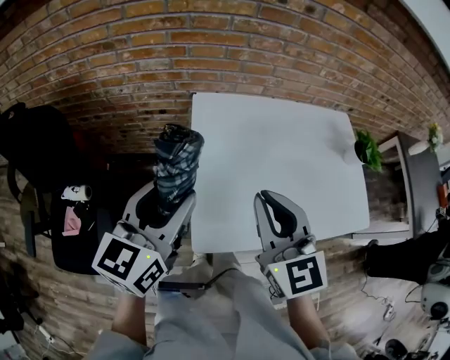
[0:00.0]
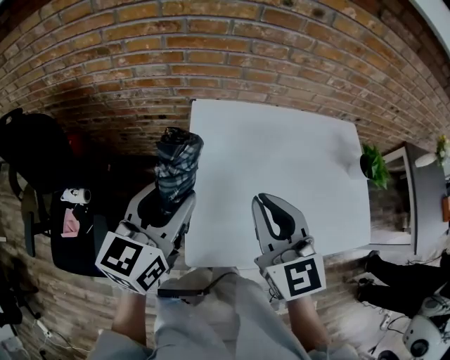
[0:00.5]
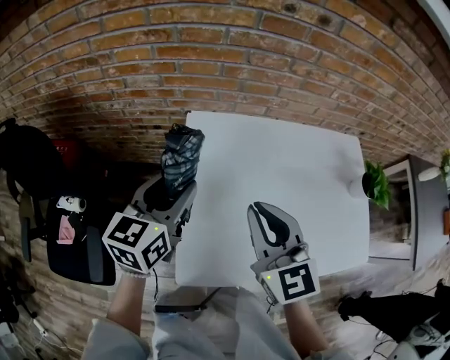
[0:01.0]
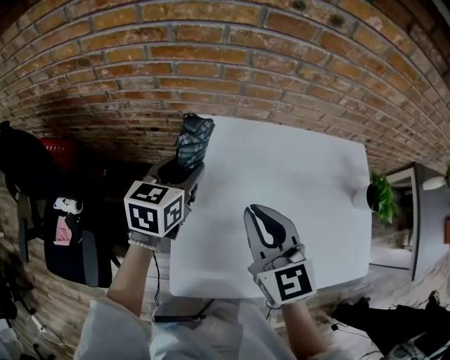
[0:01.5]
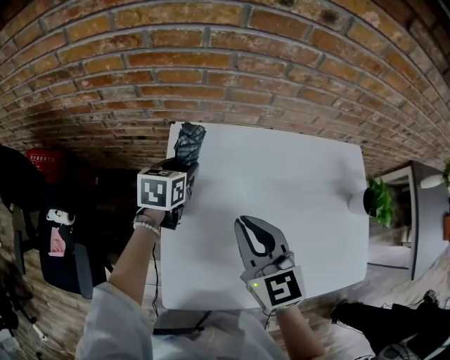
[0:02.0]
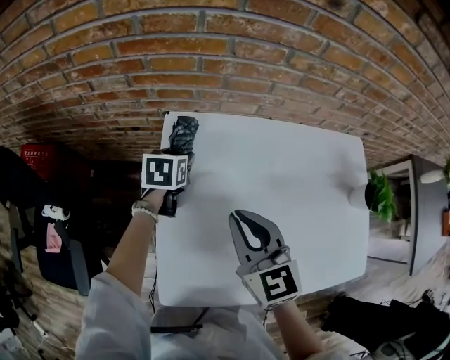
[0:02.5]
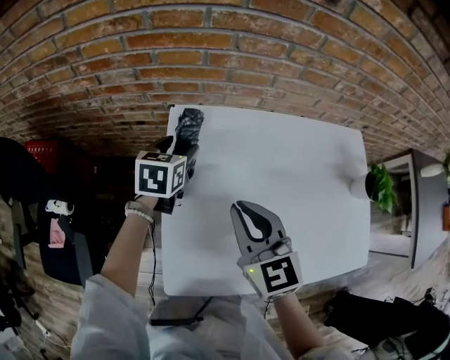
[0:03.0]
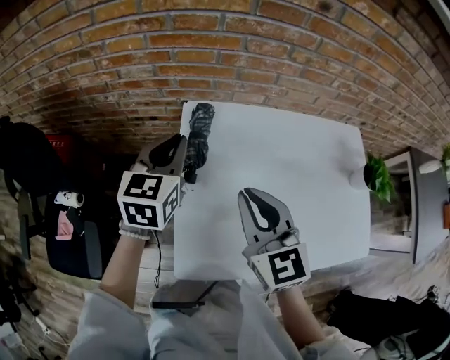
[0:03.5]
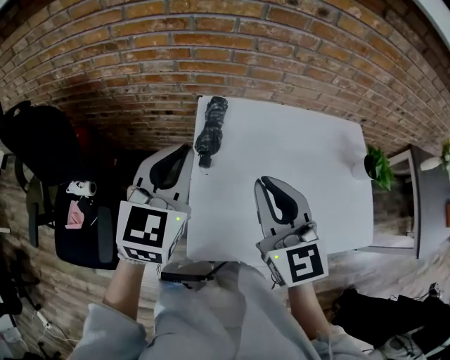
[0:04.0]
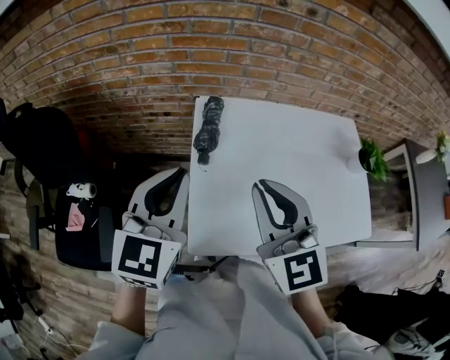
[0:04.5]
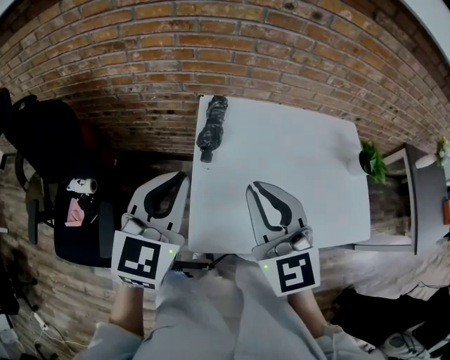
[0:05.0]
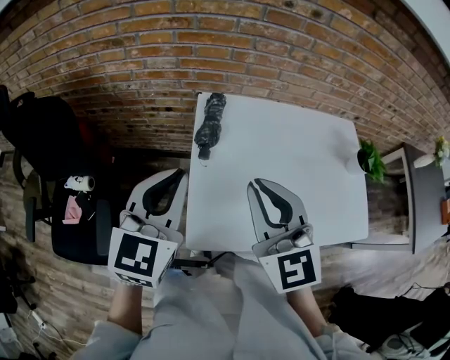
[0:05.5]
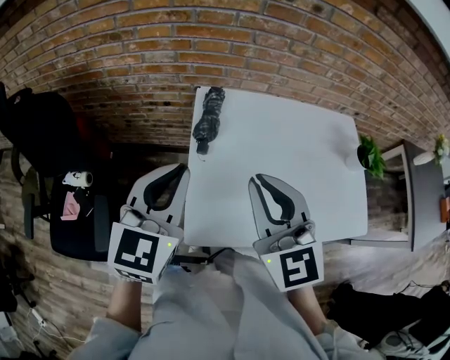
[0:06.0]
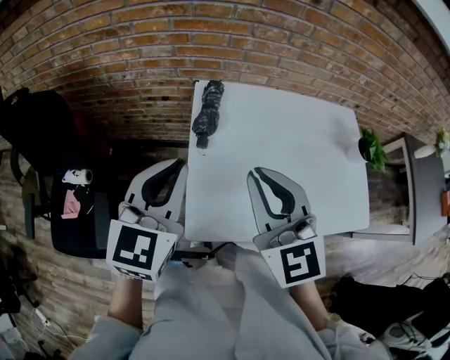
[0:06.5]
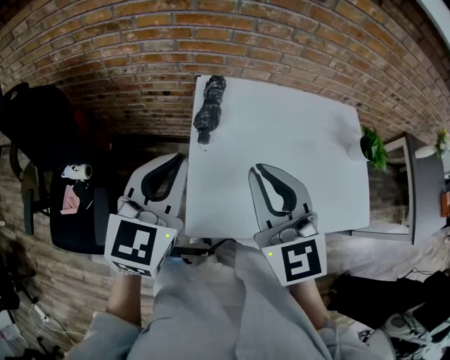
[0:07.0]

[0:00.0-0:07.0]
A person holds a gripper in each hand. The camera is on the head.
0:00.0 to 0:02.0: The left gripper moves forward and downward, some 40 cm, and tips its fingers downward by about 30 degrees, while the right gripper heads forward and downward, covering roughly 20 cm.
0:02.0 to 0:03.5: The right gripper shifts by approximately 5 cm, while the left gripper travels upward and backward by some 15 cm, rotates roughly 20 degrees, and closes its fingers.
0:03.5 to 0:05.0: The left gripper goes some 25 cm backward and upward, while the right gripper shifts approximately 15 cm backward and upward.
0:05.0 to 0:07.0: Both grippers stay put.

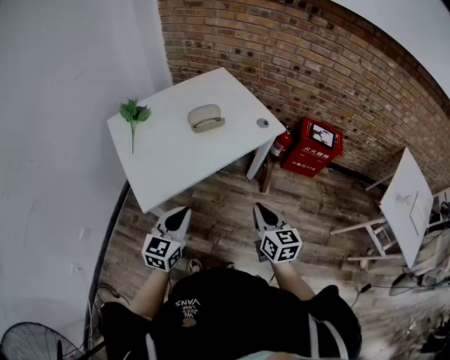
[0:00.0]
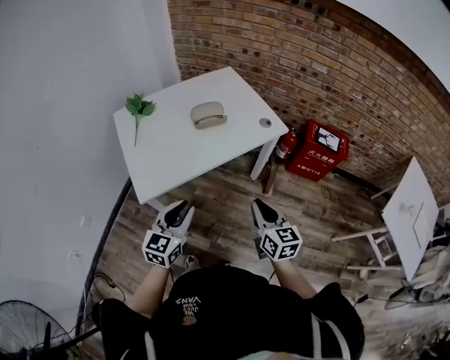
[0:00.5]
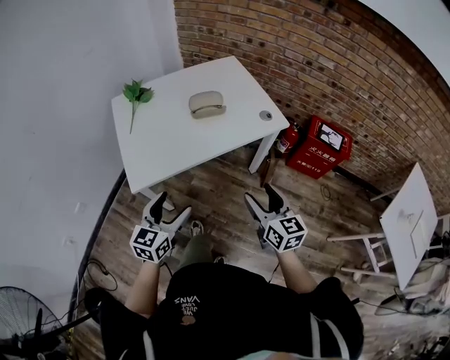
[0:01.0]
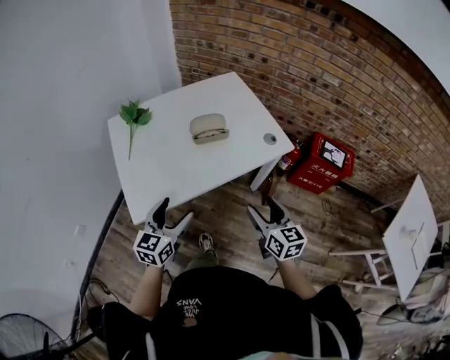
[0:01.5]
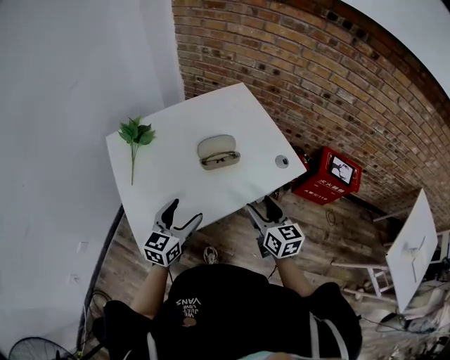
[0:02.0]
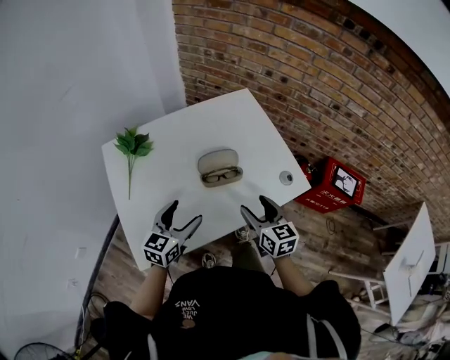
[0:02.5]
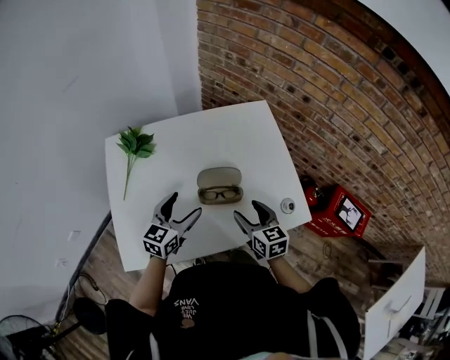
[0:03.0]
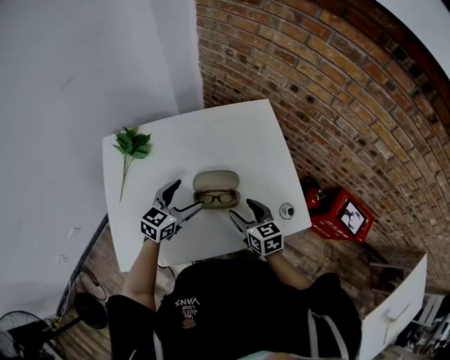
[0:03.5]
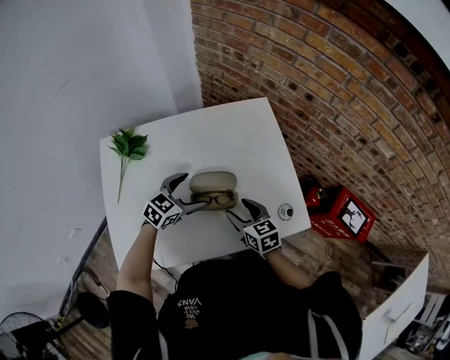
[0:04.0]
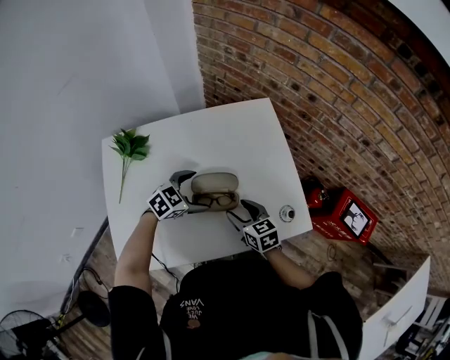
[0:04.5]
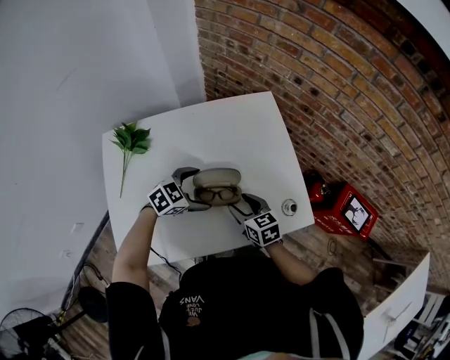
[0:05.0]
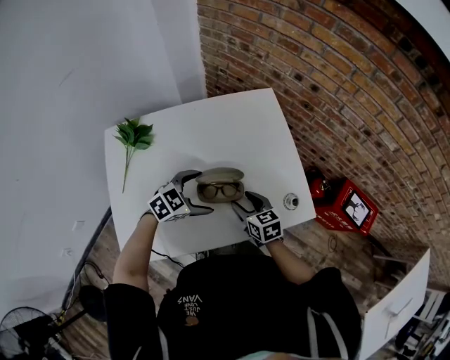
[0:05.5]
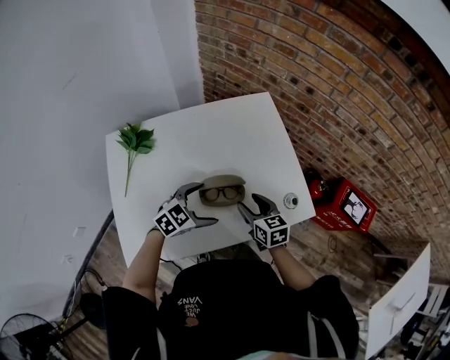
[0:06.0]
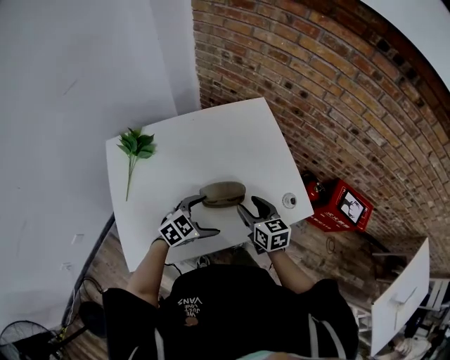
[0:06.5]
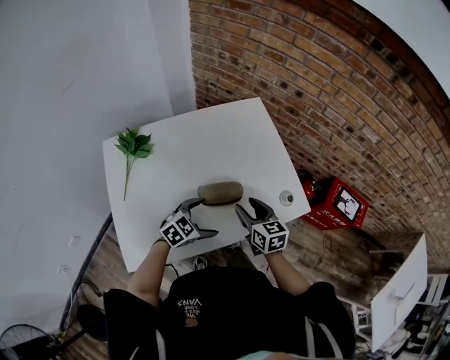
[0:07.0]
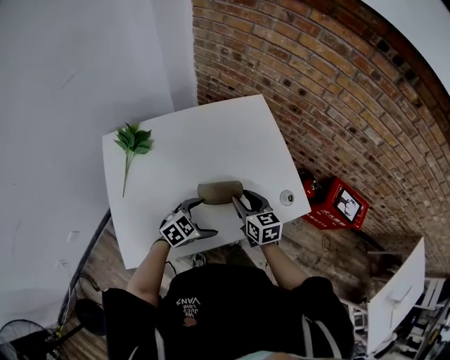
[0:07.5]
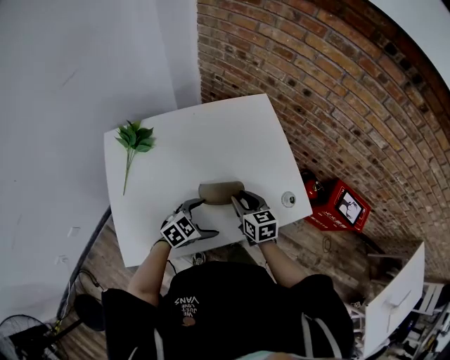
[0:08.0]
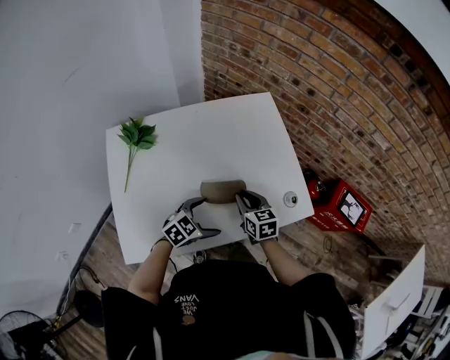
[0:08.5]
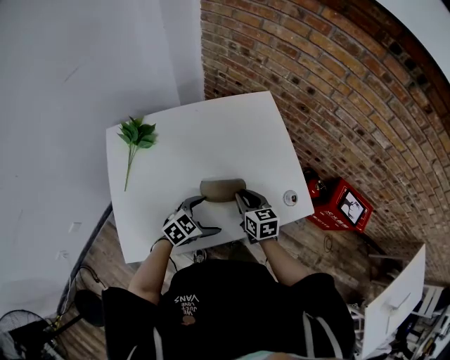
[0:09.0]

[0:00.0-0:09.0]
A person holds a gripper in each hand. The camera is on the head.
0:00.0 to 0:02.0: The grippers both shift forward by roughly 20 cm. The left gripper opens its fingers. Meanwhile the right gripper opens.
0:02.0 to 0:04.5: Both grippers move forward and downward, approximately 25 cm. The left gripper changes its angle by roughly 40 degrees. The right gripper swivels about 30 degrees.
0:04.5 to 0:07.0: The right gripper ends up approximately 5 cm from where it was. Meanwhile the left gripper shifts roughly 15 cm backward.
0:07.0 to 0:09.0: The right gripper ends up roughly 5 cm from where it was, and closes up.

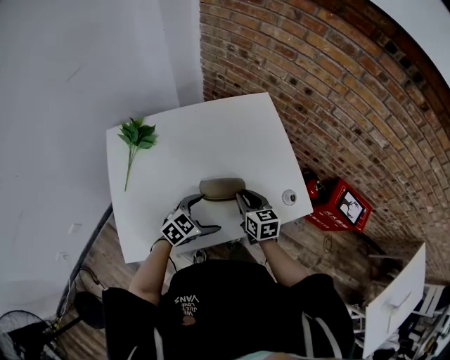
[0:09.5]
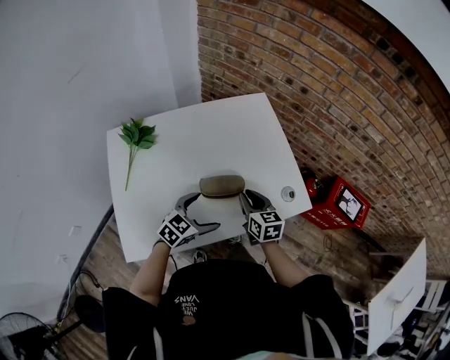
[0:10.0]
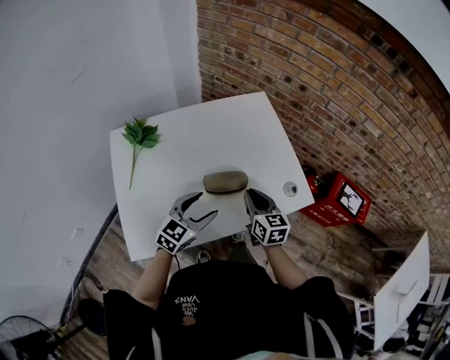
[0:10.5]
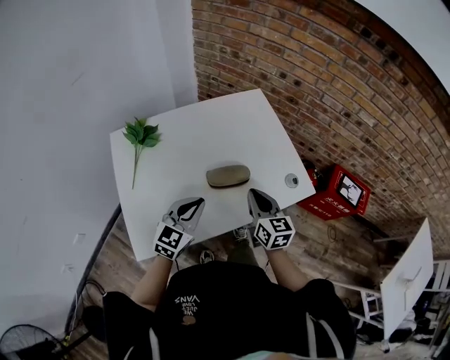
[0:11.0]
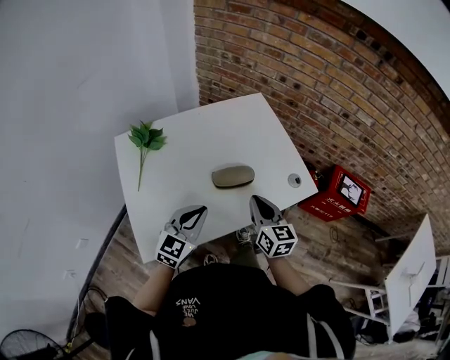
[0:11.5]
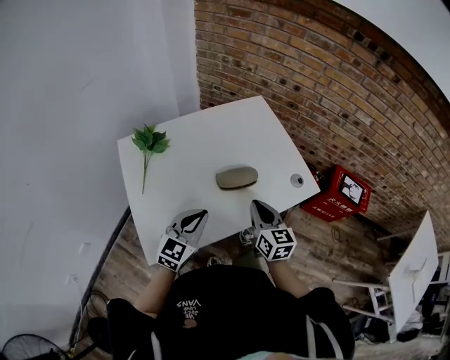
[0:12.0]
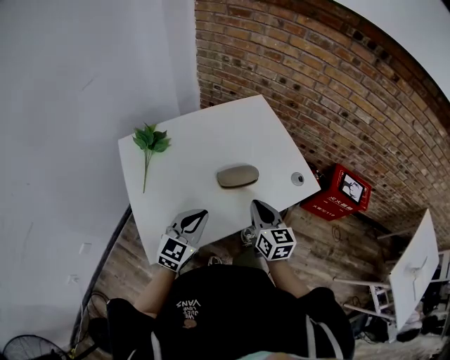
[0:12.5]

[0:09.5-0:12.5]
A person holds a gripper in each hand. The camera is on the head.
0:09.5 to 0:11.0: The left gripper shifts approximately 15 cm upward and to the left, turns by some 30 degrees, and closes its fingers. The right gripper goes about 10 cm upward and backward.
0:11.0 to 0:12.5: Both grippers travel together backward, approximately 5 cm.

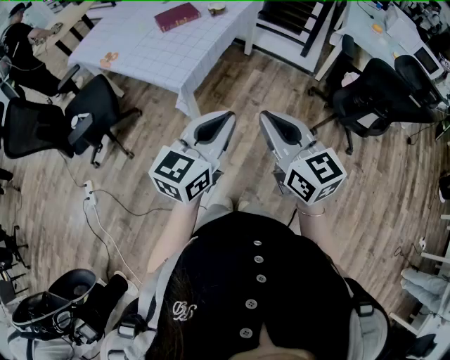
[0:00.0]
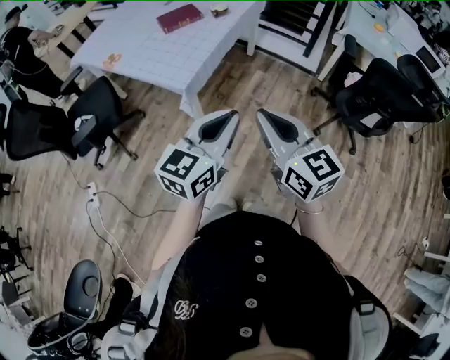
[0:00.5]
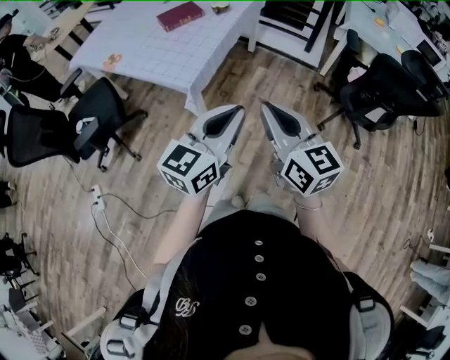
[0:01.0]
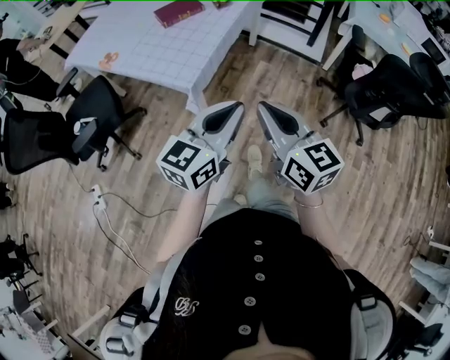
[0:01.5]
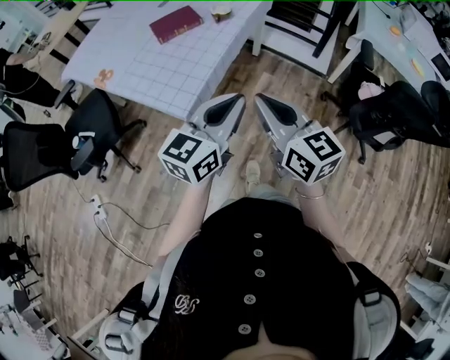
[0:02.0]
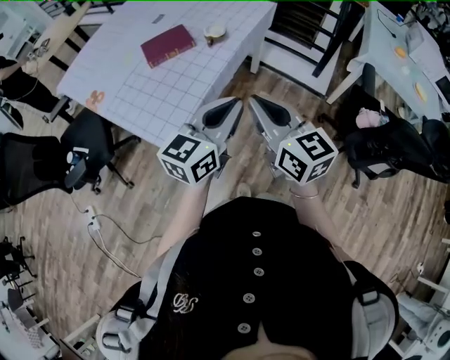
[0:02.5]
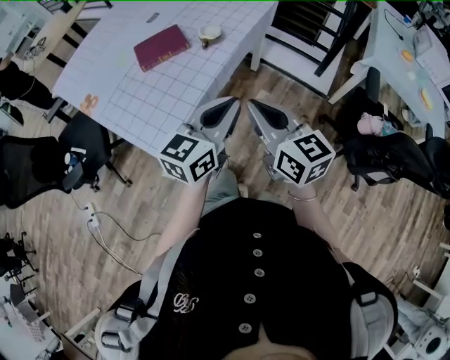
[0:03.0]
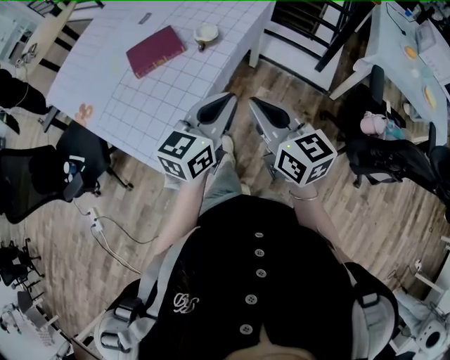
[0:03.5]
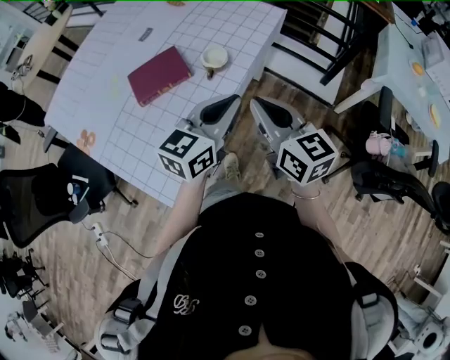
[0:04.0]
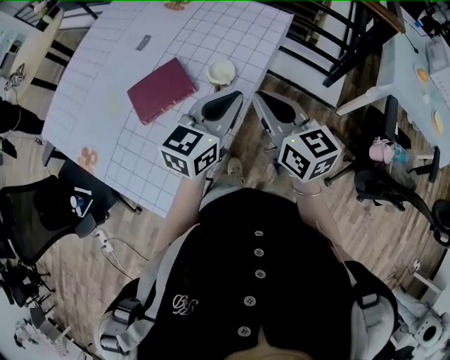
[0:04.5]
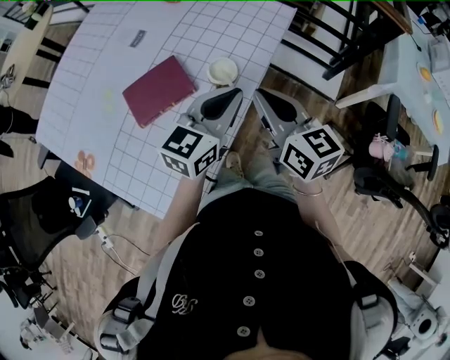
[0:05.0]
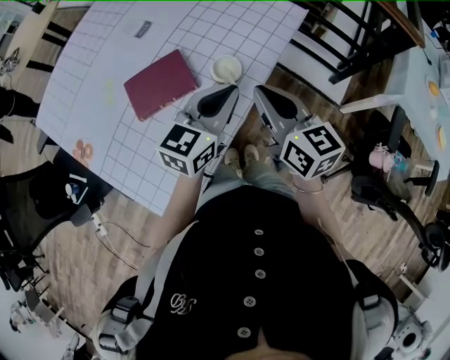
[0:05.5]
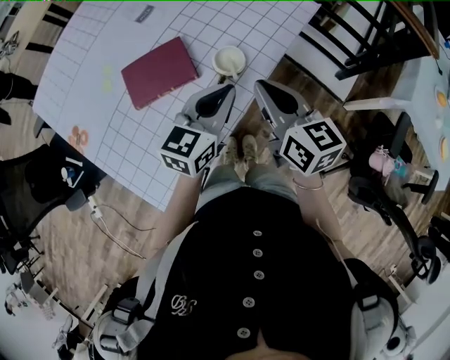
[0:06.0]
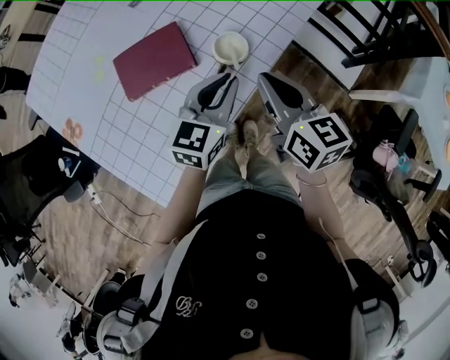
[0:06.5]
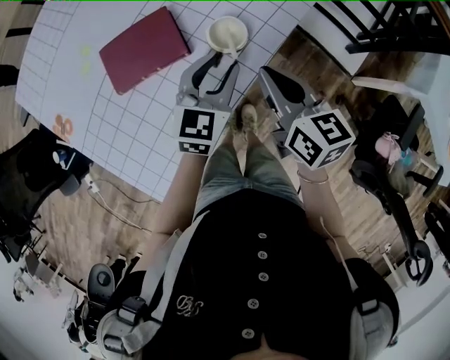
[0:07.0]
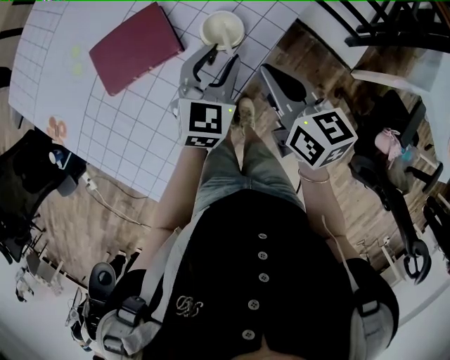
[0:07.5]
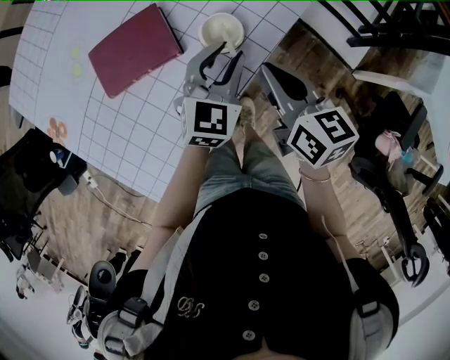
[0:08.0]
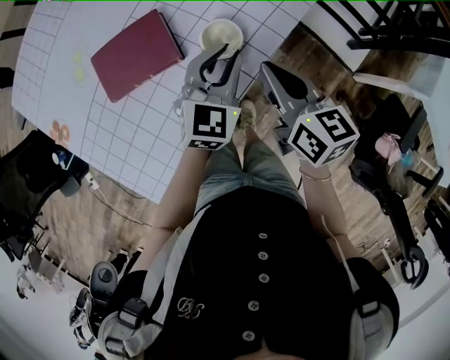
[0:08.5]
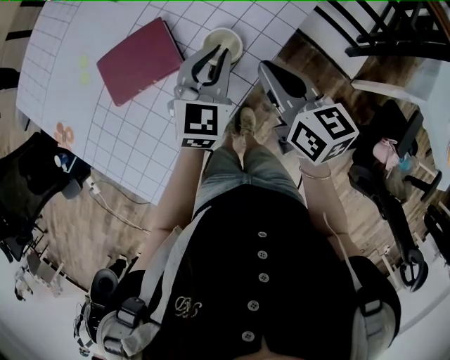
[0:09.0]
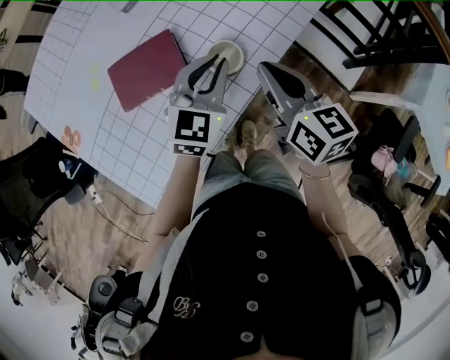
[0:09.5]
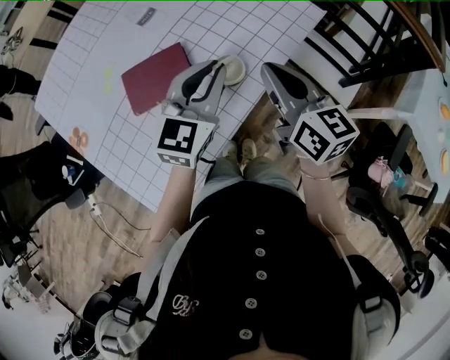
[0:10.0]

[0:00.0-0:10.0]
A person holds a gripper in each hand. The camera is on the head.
0:00.0 to 0:02.0: The grippers both shift forward by roughly 20 cm.
0:02.0 to 0:04.0: The grippers both shift forward by some 35 cm.
0:04.0 to 0:06.0: The right gripper travels forward by some 15 cm. The left gripper heads forward, downward and to the left, covering approximately 15 cm.
0:06.0 to 0:08.0: The right gripper moves downward, roughly 10 cm. The left gripper heads downward and forward, covering approximately 10 cm, changes its angle by approximately 20 degrees, and opens its fingers.
0:08.0 to 0:10.0: The two grippers go about 15 cm upward. The left gripper closes up.
